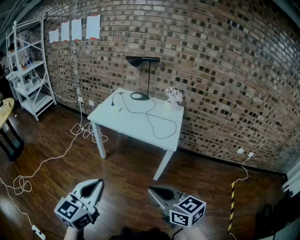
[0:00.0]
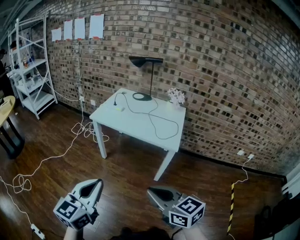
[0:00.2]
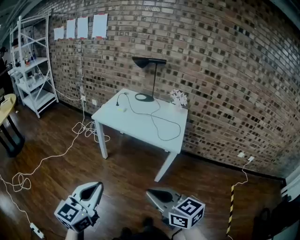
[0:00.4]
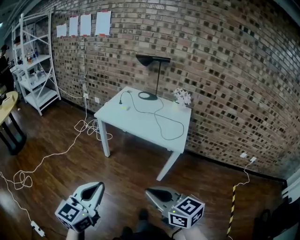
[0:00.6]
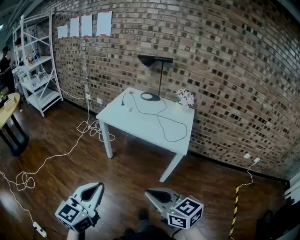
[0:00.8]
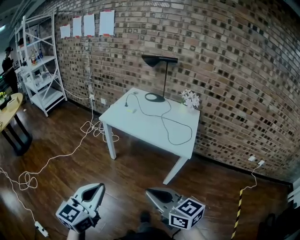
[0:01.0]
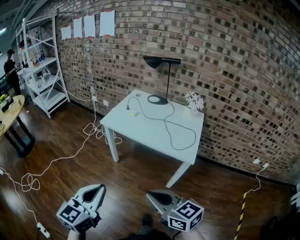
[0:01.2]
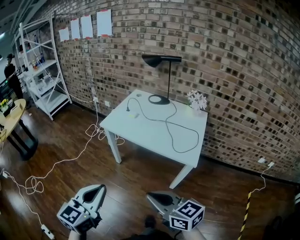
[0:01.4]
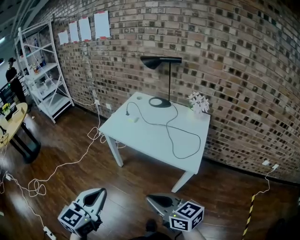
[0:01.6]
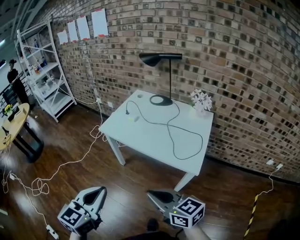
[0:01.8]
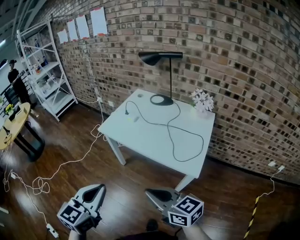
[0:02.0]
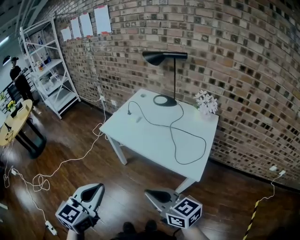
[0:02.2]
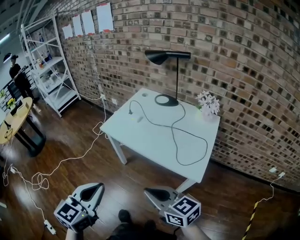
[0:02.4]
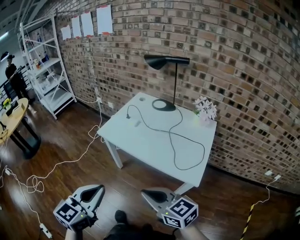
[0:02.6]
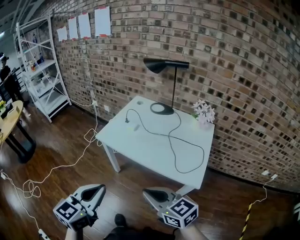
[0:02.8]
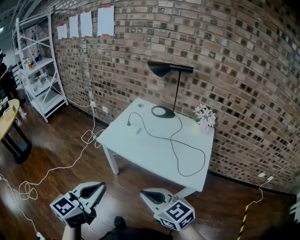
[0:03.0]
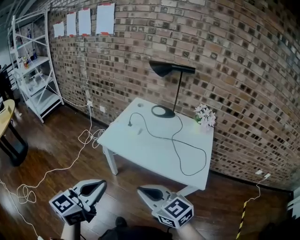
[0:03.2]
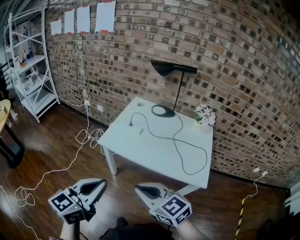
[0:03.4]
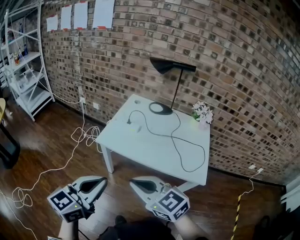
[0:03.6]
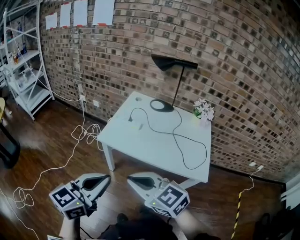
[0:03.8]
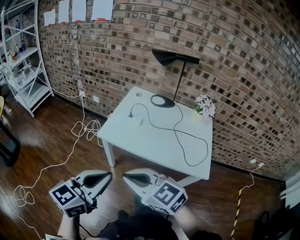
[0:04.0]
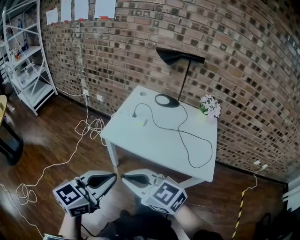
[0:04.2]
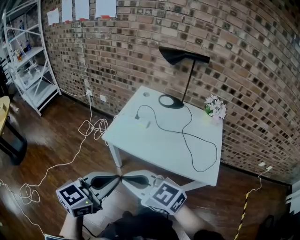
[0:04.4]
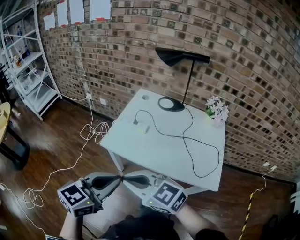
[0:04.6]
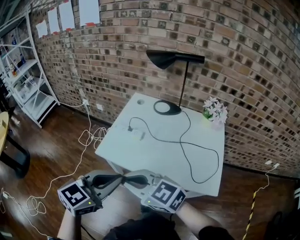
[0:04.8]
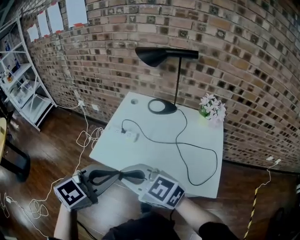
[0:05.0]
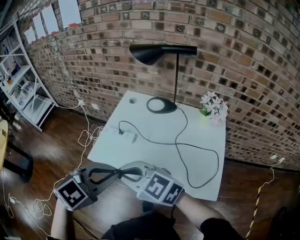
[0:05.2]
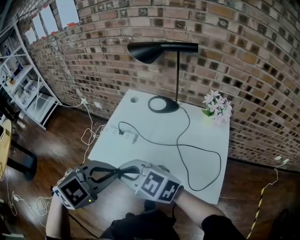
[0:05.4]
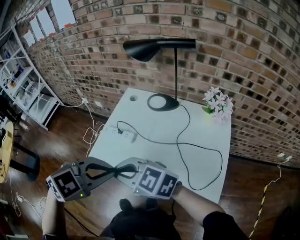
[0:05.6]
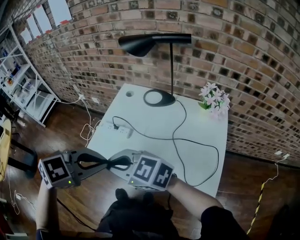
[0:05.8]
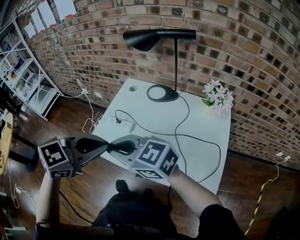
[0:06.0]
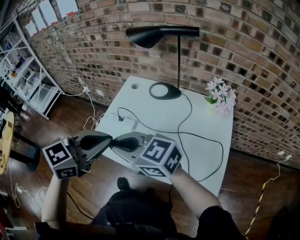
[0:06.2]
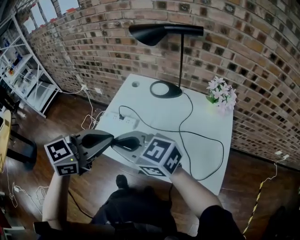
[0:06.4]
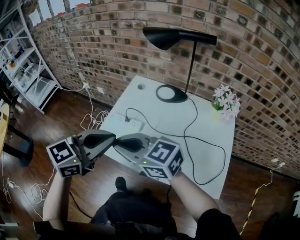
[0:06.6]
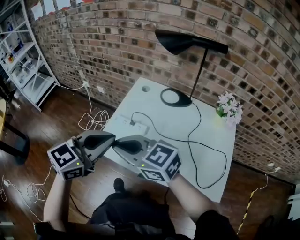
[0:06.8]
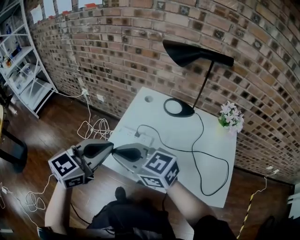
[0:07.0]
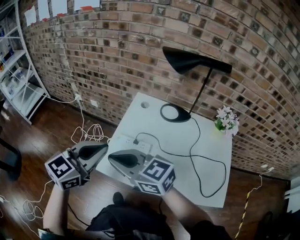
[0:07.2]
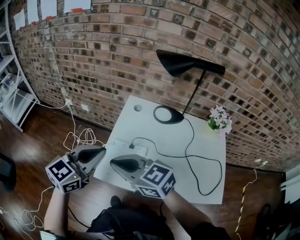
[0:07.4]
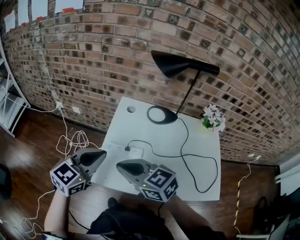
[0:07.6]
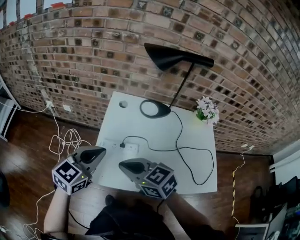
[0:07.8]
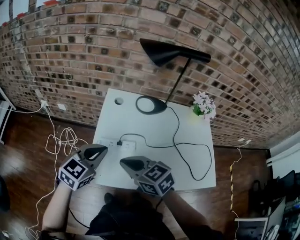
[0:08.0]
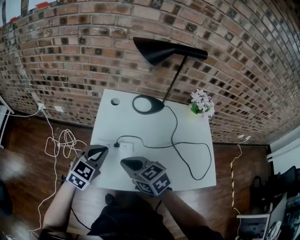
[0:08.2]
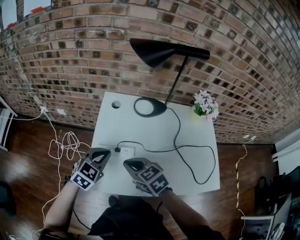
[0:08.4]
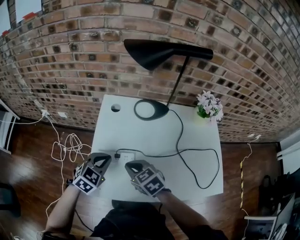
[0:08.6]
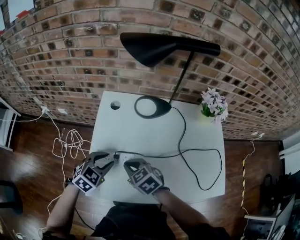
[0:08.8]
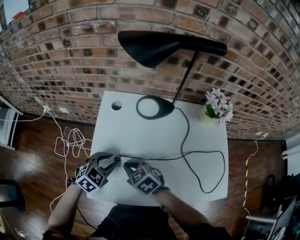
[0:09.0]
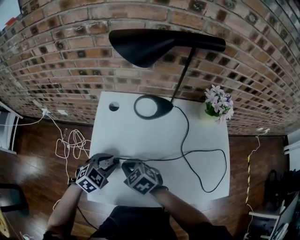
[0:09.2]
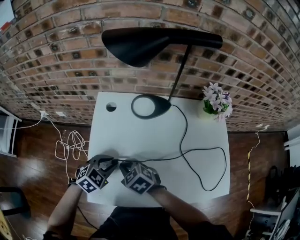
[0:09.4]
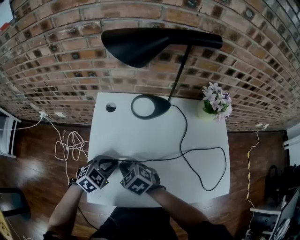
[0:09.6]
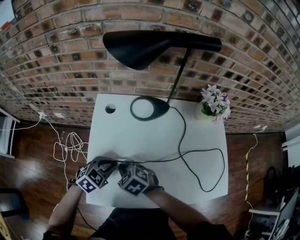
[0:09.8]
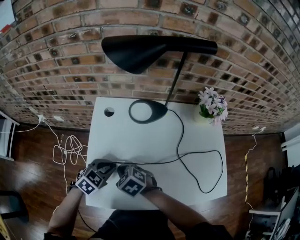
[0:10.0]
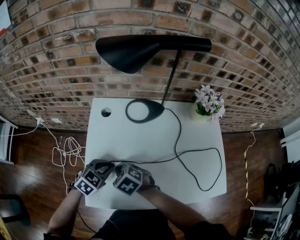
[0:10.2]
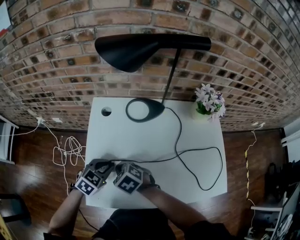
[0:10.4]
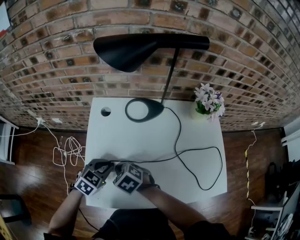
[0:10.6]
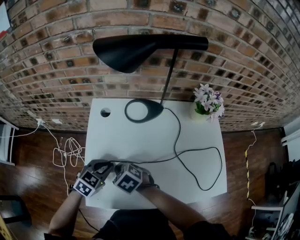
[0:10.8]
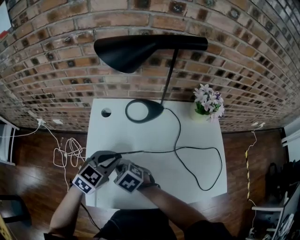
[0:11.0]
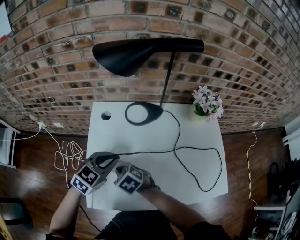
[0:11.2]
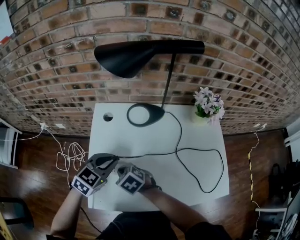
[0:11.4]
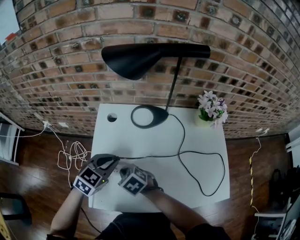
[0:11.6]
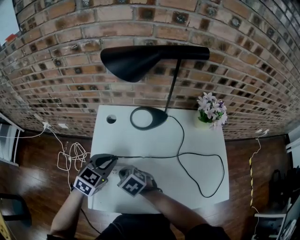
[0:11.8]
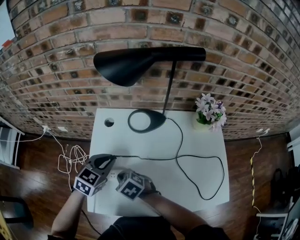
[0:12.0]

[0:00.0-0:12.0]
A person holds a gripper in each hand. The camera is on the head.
0:00.0 to 0:01.6: Both grippers travel together forward, approximately 15 cm.
0:01.6 to 0:03.0: The two grippers go roughly 15 cm forward.
0:03.0 to 0:04.4: The left gripper heads forward, covering approximately 10 cm. Meanwhile the right gripper goes about 20 cm to the left and forward.
0:04.4 to 0:06.0: The left gripper changes place by some 25 cm, and rotates some 30 degrees; the right gripper moves about 25 cm.
0:06.0 to 0:07.6: The left gripper moves some 25 cm, while the right gripper moves roughly 20 cm, and changes its angle by about 30 degrees.
0:07.6 to 0:09.0: The right gripper moves downward and forward, approximately 20 cm, and swivels about 30 degrees. The left gripper shifts about 25 cm downward, to the right and forward, tilts its fingers roughly 30 degrees downward, and opens up.
0:09.0 to 0:10.4: The grippers stay close to where they were, moving slightly.
0:10.4 to 0:12.0: The left gripper shifts roughly 10 cm upward and forward.

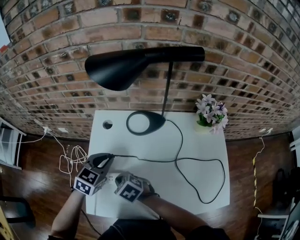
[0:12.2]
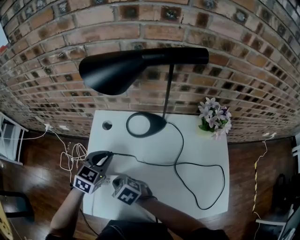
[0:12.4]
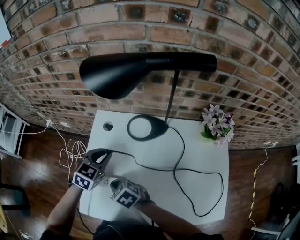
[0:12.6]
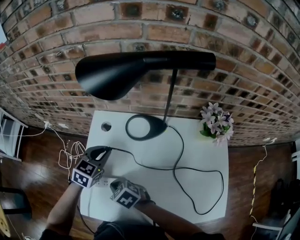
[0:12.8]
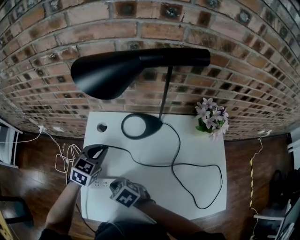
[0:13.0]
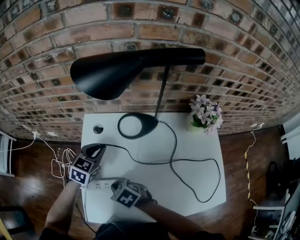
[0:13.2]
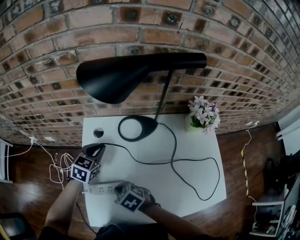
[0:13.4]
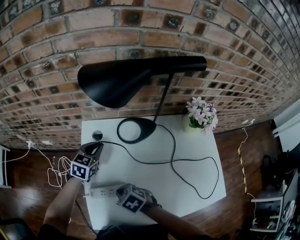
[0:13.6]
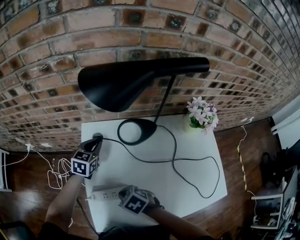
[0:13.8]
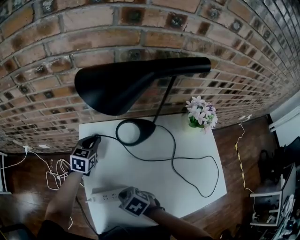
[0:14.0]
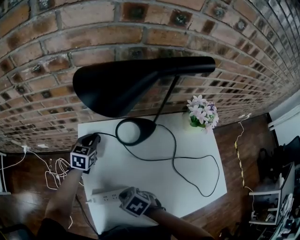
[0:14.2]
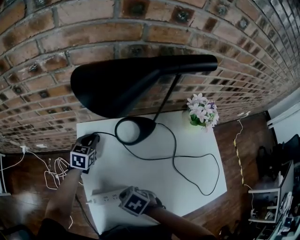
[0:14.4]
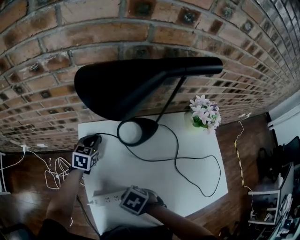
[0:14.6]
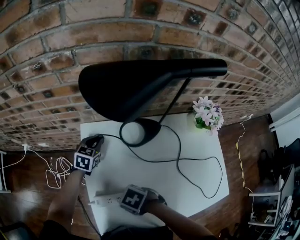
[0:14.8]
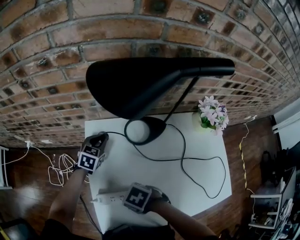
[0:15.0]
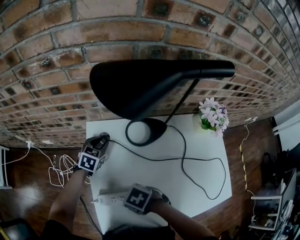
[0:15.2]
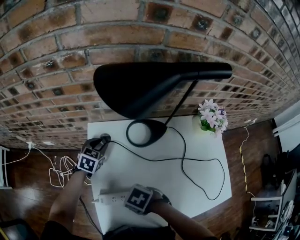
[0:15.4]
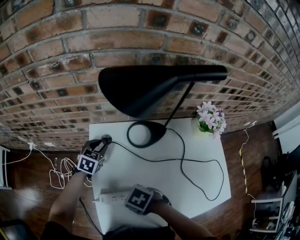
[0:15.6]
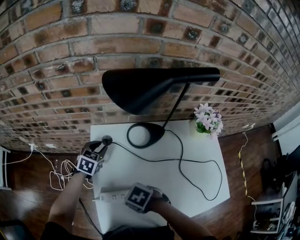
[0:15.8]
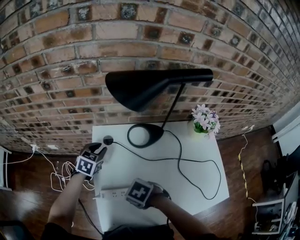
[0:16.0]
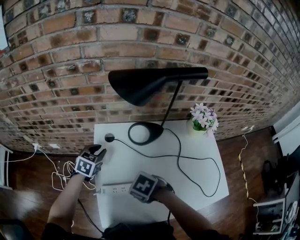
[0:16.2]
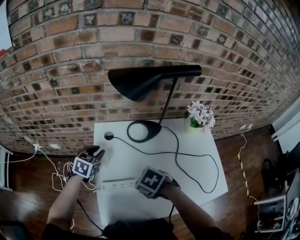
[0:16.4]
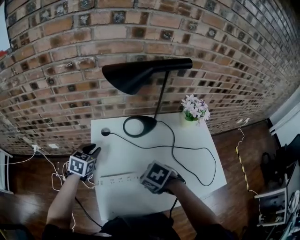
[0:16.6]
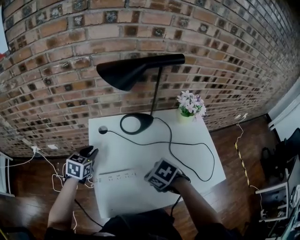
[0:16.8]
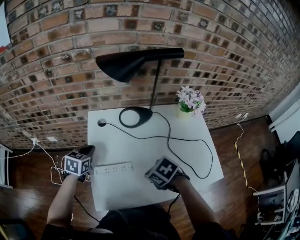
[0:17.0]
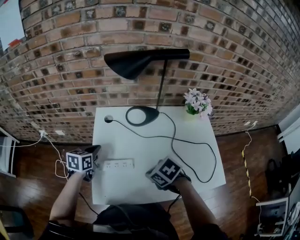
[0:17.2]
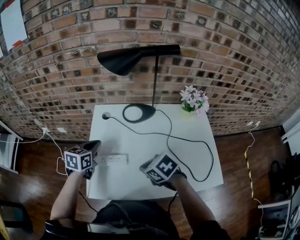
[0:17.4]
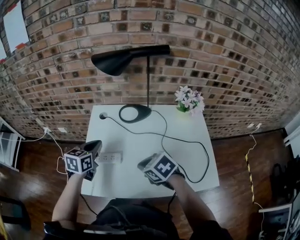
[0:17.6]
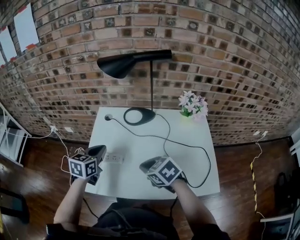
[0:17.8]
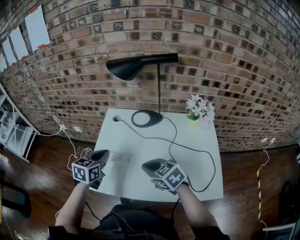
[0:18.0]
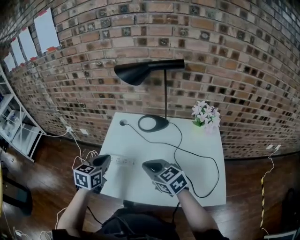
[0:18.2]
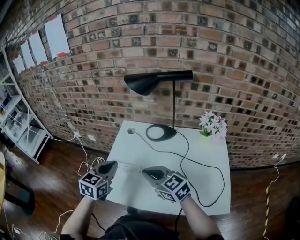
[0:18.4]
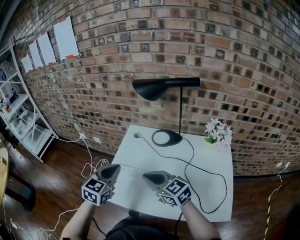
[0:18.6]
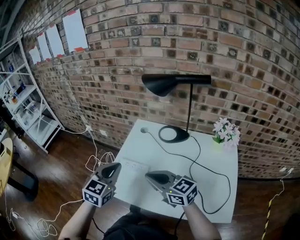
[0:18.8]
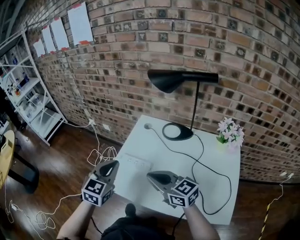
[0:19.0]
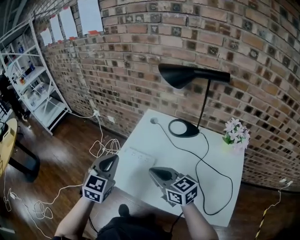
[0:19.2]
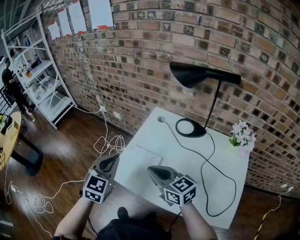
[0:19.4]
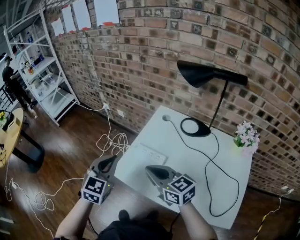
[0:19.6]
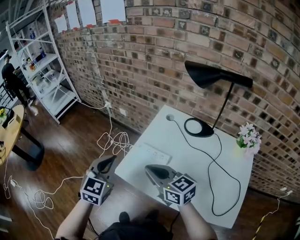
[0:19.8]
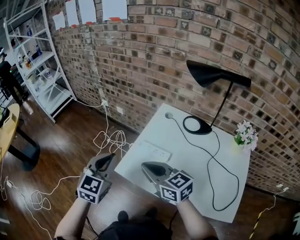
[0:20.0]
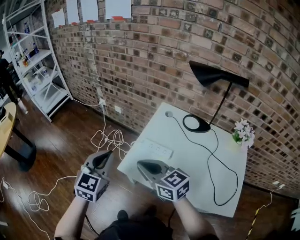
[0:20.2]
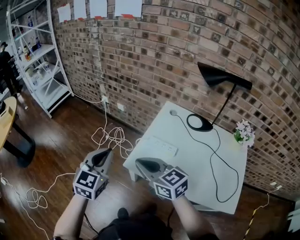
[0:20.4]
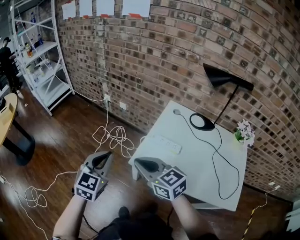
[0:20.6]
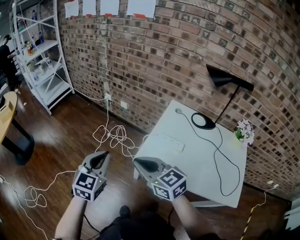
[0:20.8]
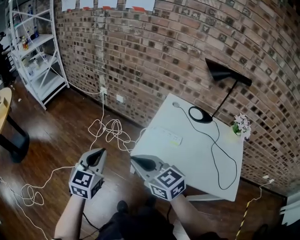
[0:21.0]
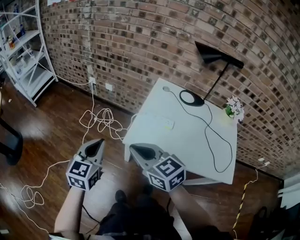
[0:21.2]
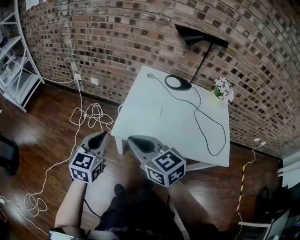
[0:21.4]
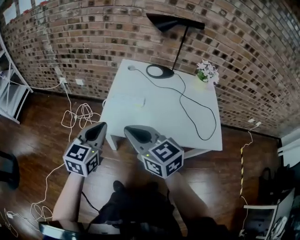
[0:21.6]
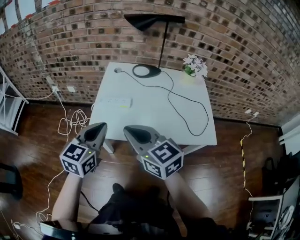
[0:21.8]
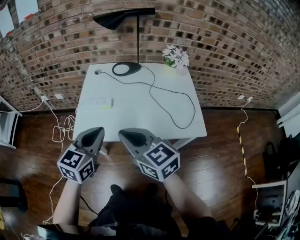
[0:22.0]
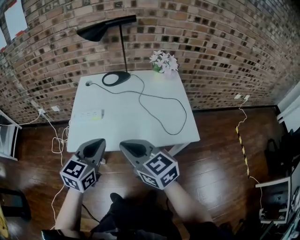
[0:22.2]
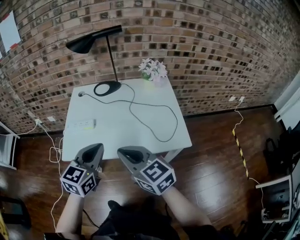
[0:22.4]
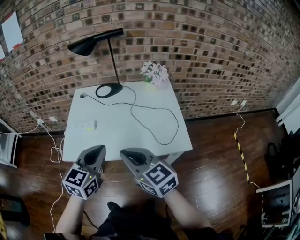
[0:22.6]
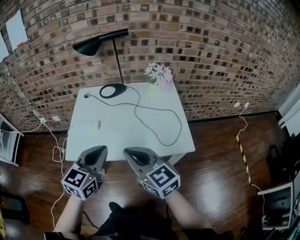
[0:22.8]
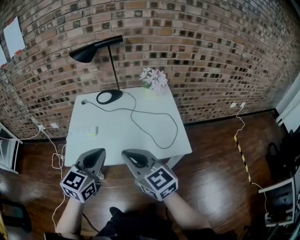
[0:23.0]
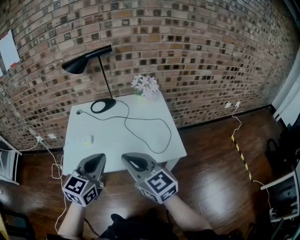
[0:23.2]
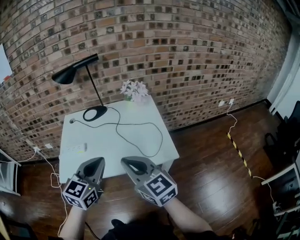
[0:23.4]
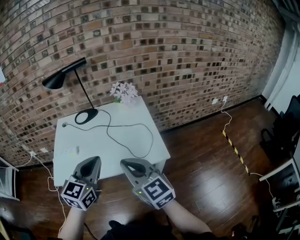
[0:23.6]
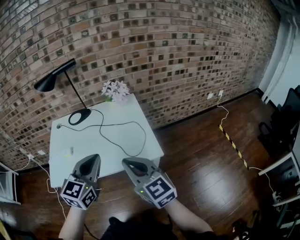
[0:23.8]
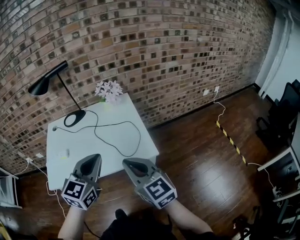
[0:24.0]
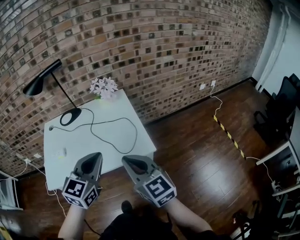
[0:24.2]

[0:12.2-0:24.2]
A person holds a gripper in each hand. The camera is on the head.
0:12.2 to 0:13.8: The left gripper goes about 15 cm forward.
0:13.8 to 0:15.2: The left gripper changes place by about 5 cm. Meanwhile the right gripper turns by about 20 degrees.
0:15.2 to 0:16.6: The right gripper shifts by approximately 10 cm, while the left gripper shifts by some 15 cm.
0:16.6 to 0:18.2: The left gripper heads backward, covering roughly 20 cm, turns by about 20 degrees, and closes up. Meanwhile the right gripper shifts roughly 10 cm upward and backward, and points its fingers approximately 40 degrees further upward.
0:18.2 to 0:19.8: The right gripper goes some 15 cm to the left, and changes its angle by about 20 degrees, while the left gripper is displaced to the left and upward by about 15 cm, and swivels about 30 degrees.
0:19.8 to 0:21.2: Both grippers move to the left, approximately 20 cm.
0:21.2 to 0:22.6: The left gripper changes place by about 40 cm, and turns by about 30 degrees; the right gripper shifts by some 35 cm, and swivels some 30 degrees.
0:22.6 to 0:24.2: The two grippers go some 20 cm to the right. The right gripper changes its angle by some 20 degrees.
